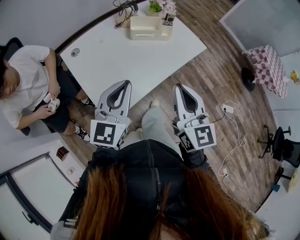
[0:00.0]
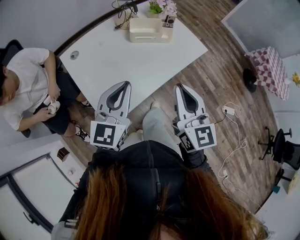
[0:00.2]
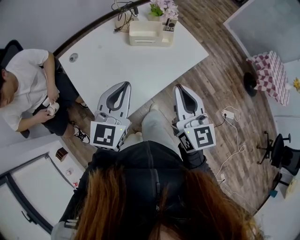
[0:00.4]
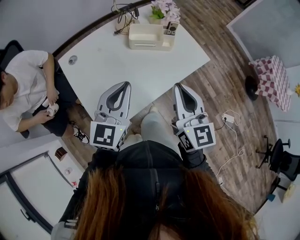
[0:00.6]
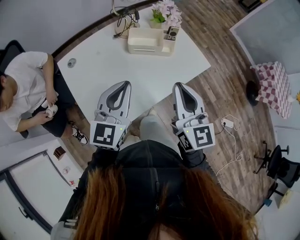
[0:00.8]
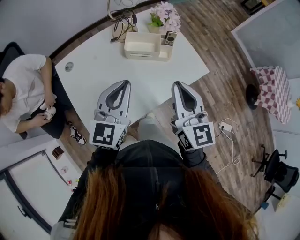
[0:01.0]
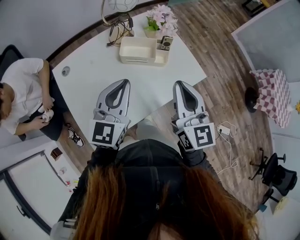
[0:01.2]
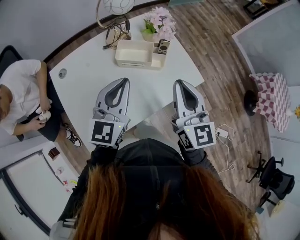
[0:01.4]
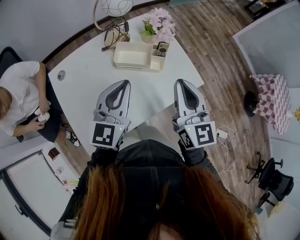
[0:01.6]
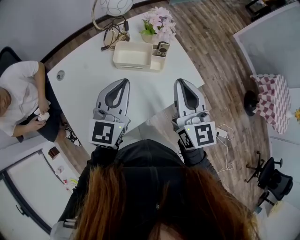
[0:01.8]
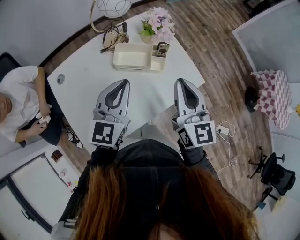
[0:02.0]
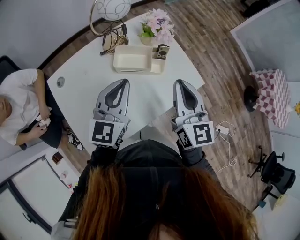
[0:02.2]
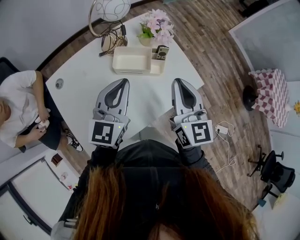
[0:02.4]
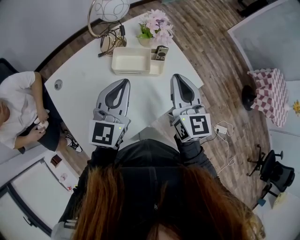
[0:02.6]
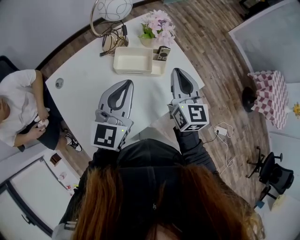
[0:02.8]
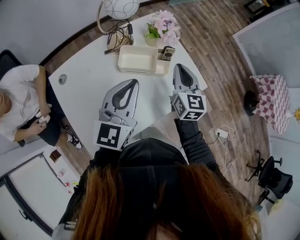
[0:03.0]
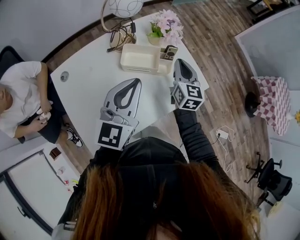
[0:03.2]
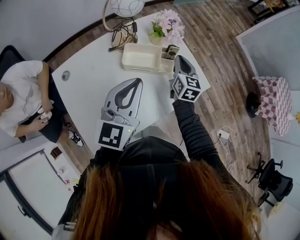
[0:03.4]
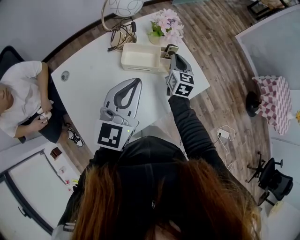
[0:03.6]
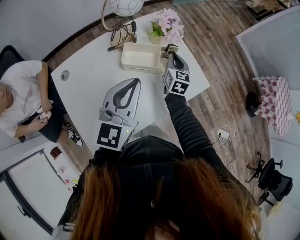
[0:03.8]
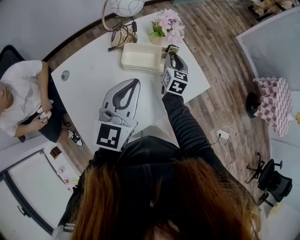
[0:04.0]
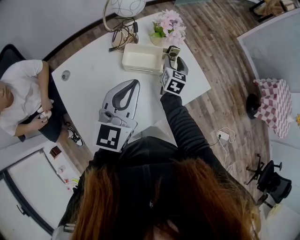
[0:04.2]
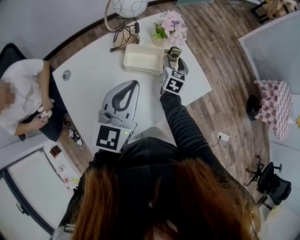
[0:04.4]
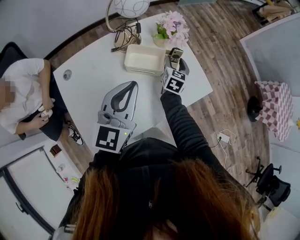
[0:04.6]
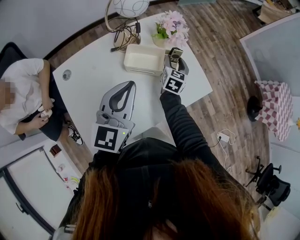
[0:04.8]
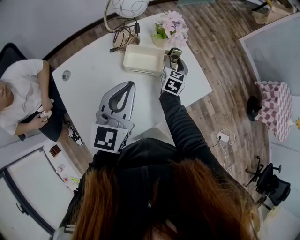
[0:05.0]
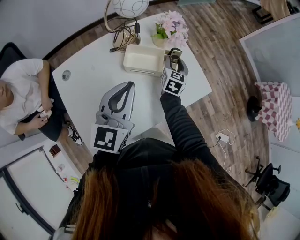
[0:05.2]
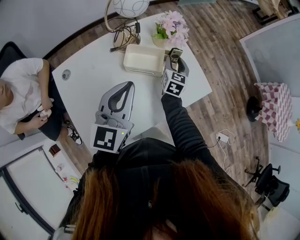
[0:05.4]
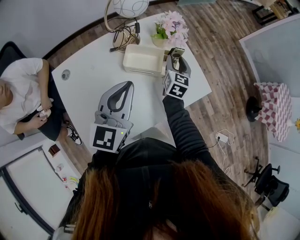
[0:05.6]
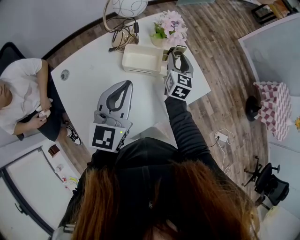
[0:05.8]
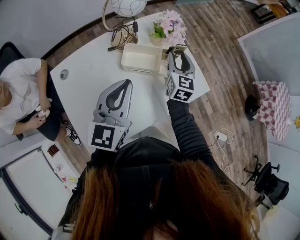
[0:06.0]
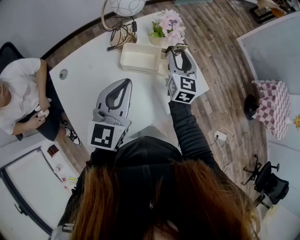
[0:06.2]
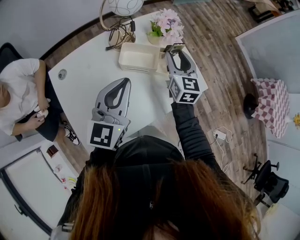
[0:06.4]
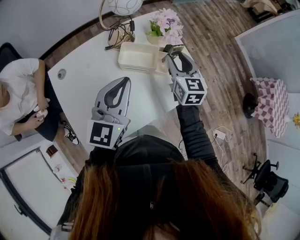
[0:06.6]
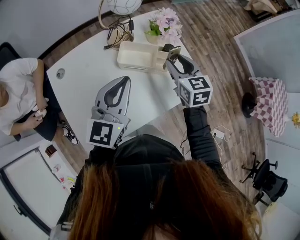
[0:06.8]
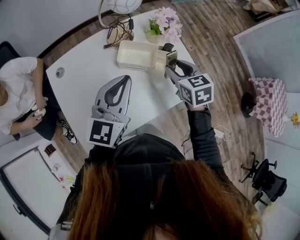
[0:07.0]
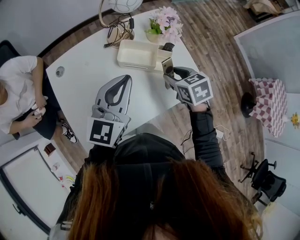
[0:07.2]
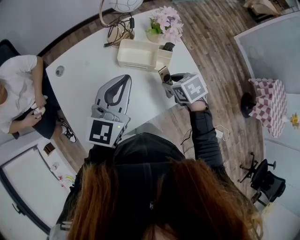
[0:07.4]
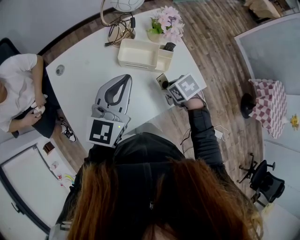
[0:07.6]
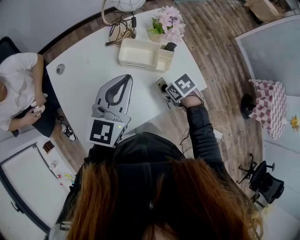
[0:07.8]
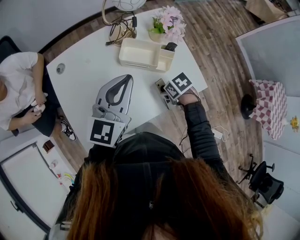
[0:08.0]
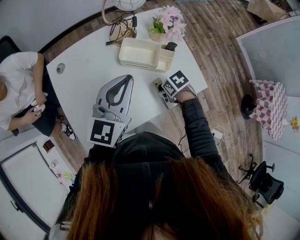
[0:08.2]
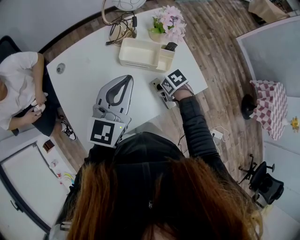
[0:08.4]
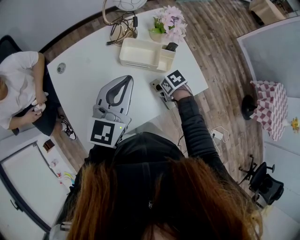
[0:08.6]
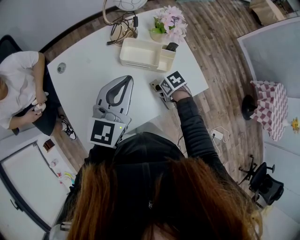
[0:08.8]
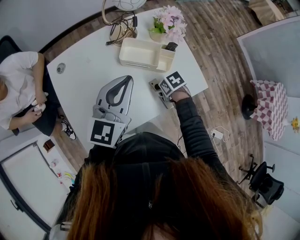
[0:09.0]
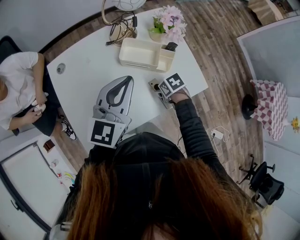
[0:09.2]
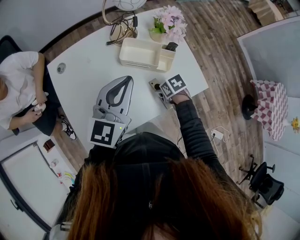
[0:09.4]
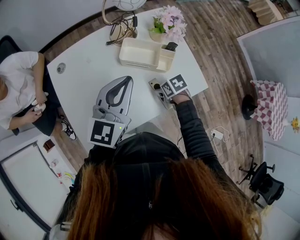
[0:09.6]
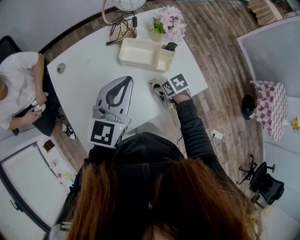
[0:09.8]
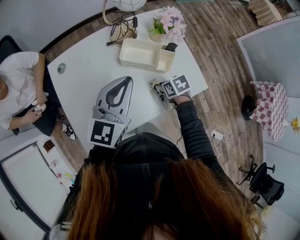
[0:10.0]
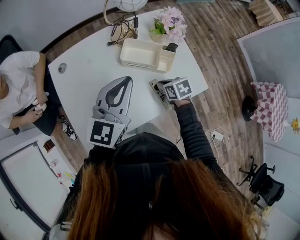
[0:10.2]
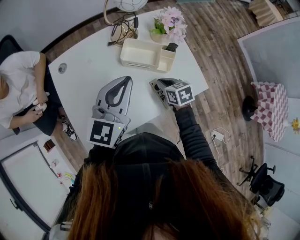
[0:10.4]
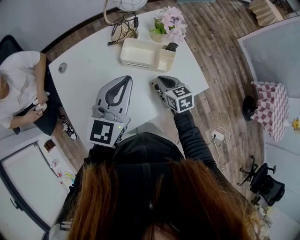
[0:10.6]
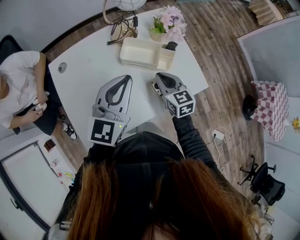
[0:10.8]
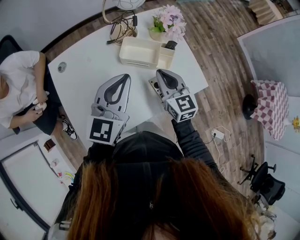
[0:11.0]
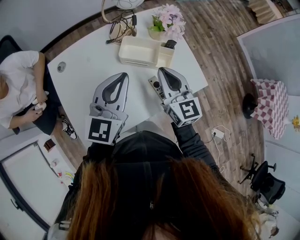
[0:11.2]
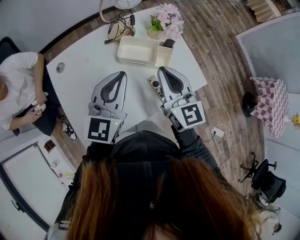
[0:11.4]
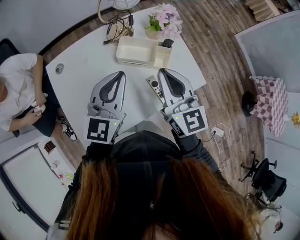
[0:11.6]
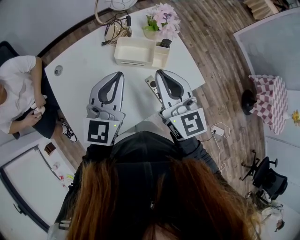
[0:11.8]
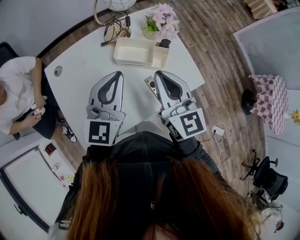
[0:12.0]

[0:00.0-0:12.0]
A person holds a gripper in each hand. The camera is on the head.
0:00.0 to 0:01.6: The two grippers go approximately 25 cm forward and to the right.
0:01.6 to 0:03.0: The right gripper moves forward and downward, roughly 15 cm.
0:03.0 to 0:04.4: The right gripper heads downward and forward, covering some 15 cm, swivels approximately 20 degrees, and opens up.
0:04.4 to 0:06.0: The right gripper moves upward, roughly 10 cm.
0:06.0 to 0:07.6: The right gripper changes place by about 20 cm, and tilts its fingers approximately 60 degrees downward.
0:07.6 to 0:09.0: The right gripper moves downward, roughly 10 cm.
0:09.0 to 0:10.4: The right gripper heads upward, covering some 5 cm, swivels roughly 30 degrees, and closes.
0:10.4 to 0:12.0: The right gripper heads upward, covering some 25 cm, and tips its fingers upward by approximately 40 degrees.

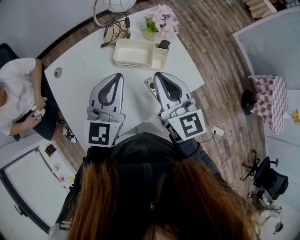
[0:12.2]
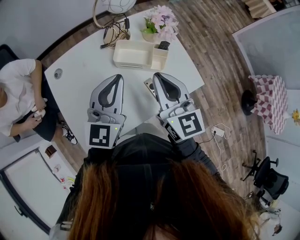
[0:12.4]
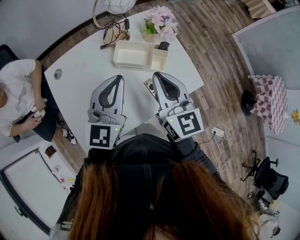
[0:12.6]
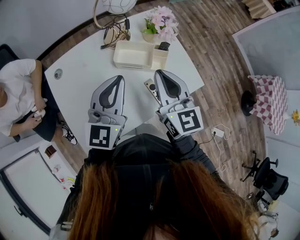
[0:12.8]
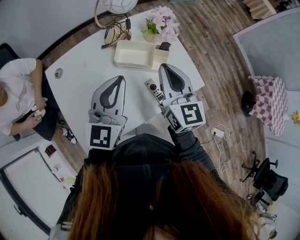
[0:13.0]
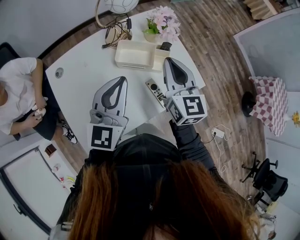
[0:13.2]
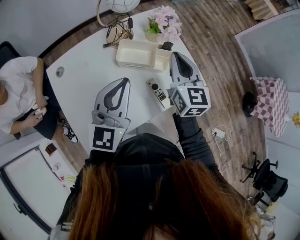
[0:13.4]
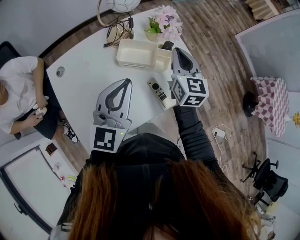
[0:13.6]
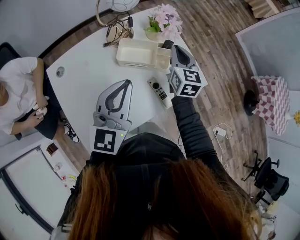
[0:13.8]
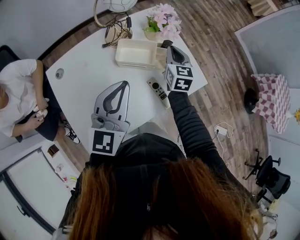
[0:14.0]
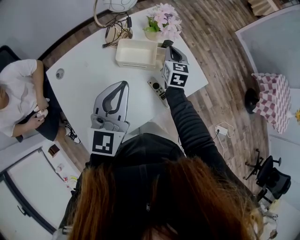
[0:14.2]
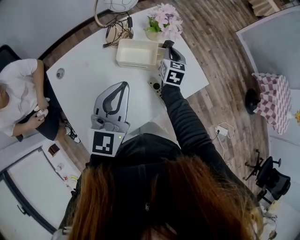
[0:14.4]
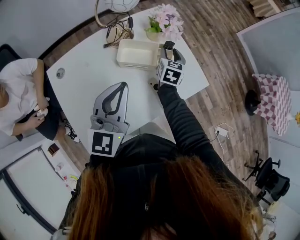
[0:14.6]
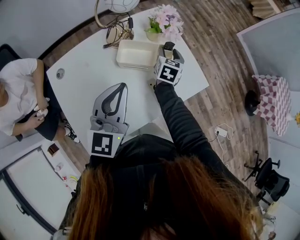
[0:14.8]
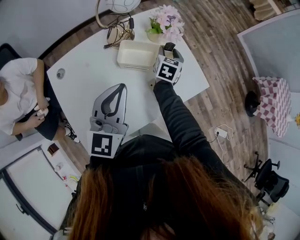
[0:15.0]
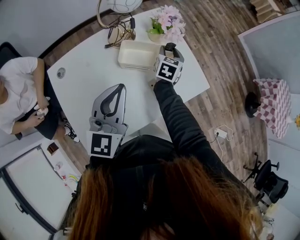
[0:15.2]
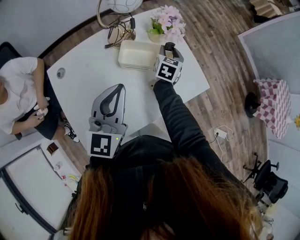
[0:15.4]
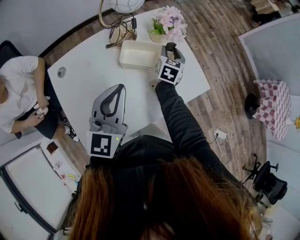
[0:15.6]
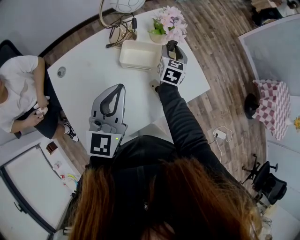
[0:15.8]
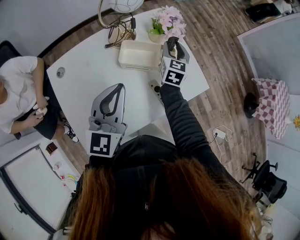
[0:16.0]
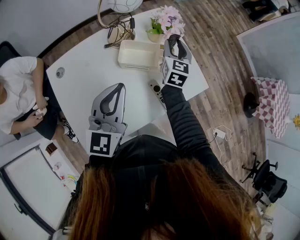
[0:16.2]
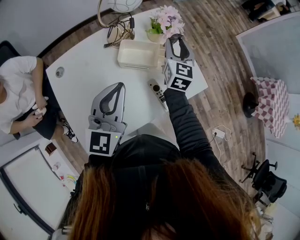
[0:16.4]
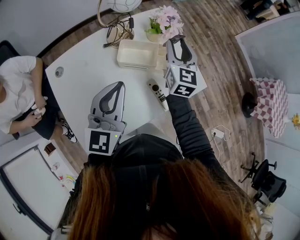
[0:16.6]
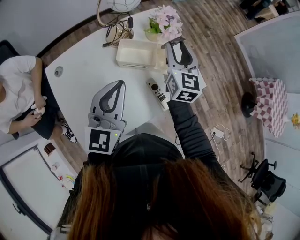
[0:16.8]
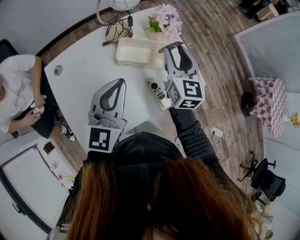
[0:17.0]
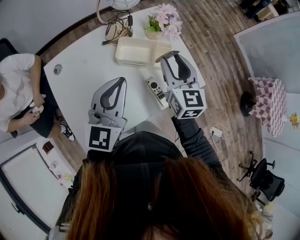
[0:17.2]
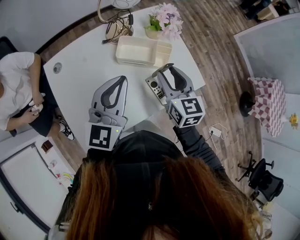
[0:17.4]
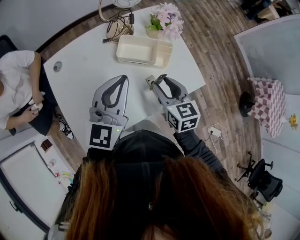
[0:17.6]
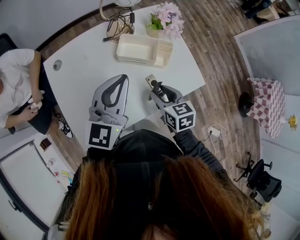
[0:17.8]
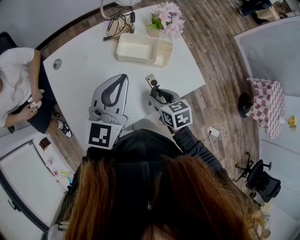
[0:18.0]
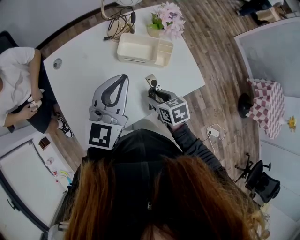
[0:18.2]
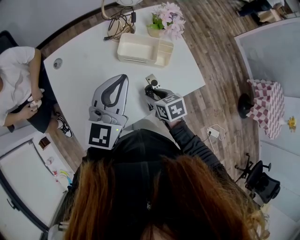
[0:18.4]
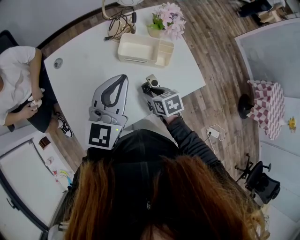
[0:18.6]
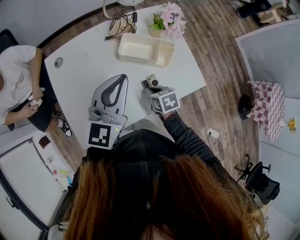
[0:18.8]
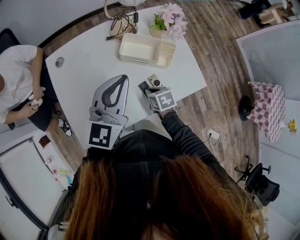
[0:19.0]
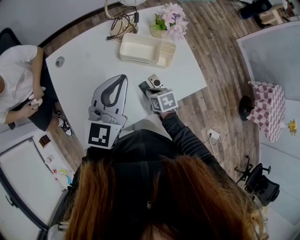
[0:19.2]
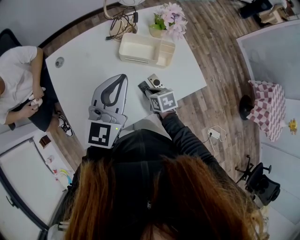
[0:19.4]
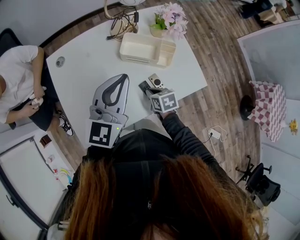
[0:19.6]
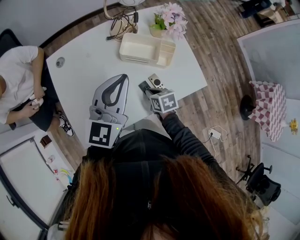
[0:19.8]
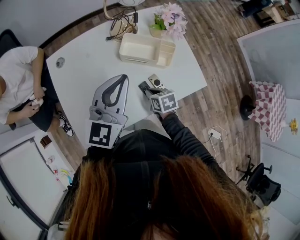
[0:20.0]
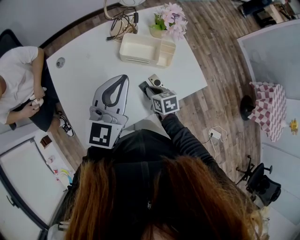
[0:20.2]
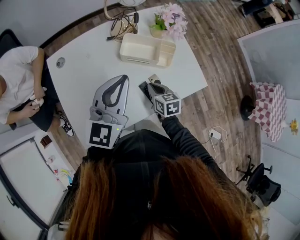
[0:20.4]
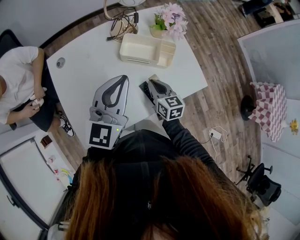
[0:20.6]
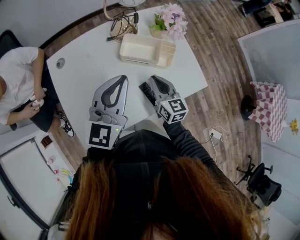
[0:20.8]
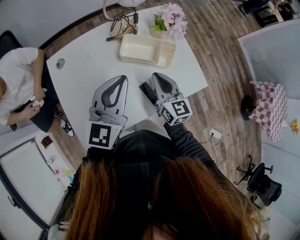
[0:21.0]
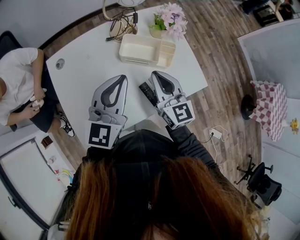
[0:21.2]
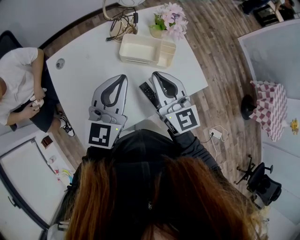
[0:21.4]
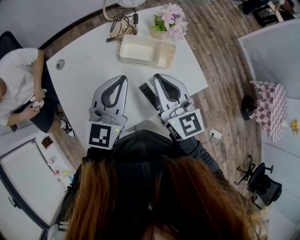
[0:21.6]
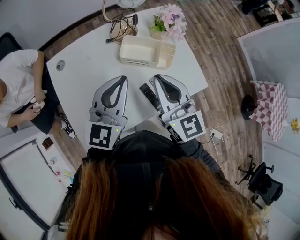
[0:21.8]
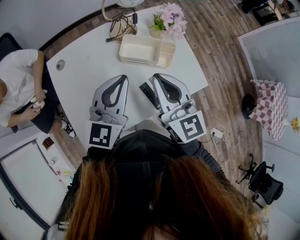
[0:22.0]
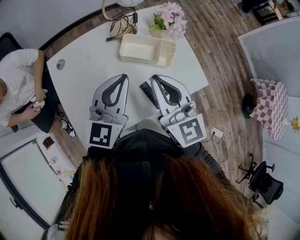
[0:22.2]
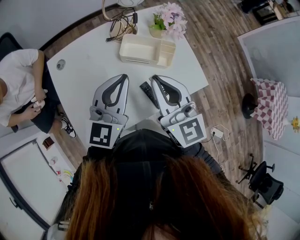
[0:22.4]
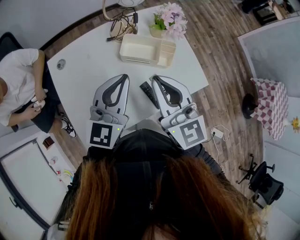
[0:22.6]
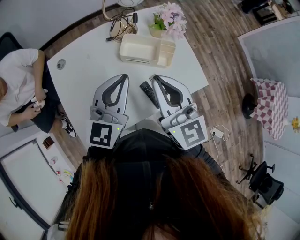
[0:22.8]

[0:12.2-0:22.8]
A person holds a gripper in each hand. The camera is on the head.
0:12.2 to 0:13.8: The right gripper goes roughly 20 cm forward, downward and to the right, and turns by about 20 degrees.
0:13.8 to 0:15.2: The right gripper is displaced downward and forward by roughly 15 cm, swivels roughly 20 degrees, and opens its fingers.
0:15.2 to 0:16.8: The right gripper moves upward, roughly 15 cm, and rotates approximately 30 degrees.
0:16.8 to 0:18.2: The right gripper heads backward and downward, covering about 25 cm, and tilts its fingers roughly 40 degrees downward.
0:18.2 to 0:19.8: The right gripper shifts about 5 cm downward, and closes.
0:19.8 to 0:21.2: The right gripper goes roughly 20 cm upward, and tilts its fingers approximately 50 degrees upward.
0:21.2 to 0:22.8: The right gripper moves upward, about 10 cm.

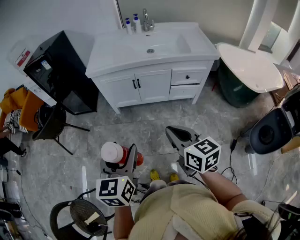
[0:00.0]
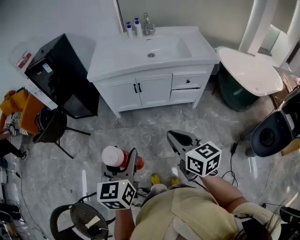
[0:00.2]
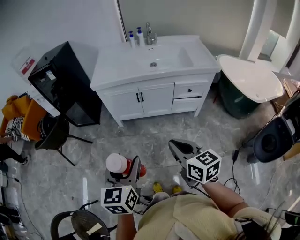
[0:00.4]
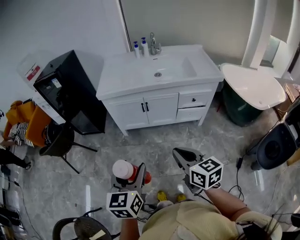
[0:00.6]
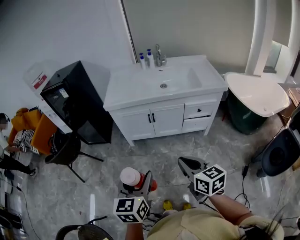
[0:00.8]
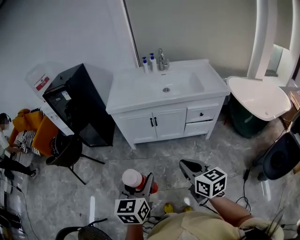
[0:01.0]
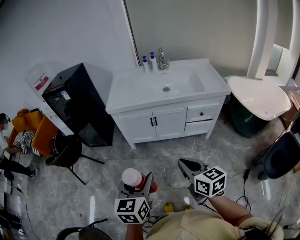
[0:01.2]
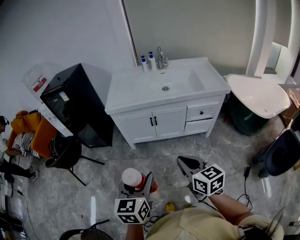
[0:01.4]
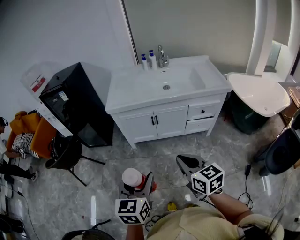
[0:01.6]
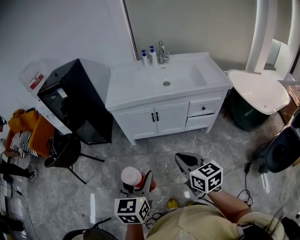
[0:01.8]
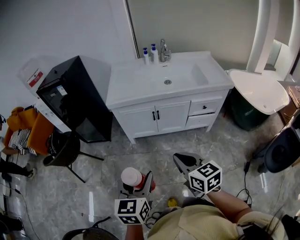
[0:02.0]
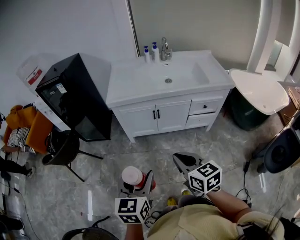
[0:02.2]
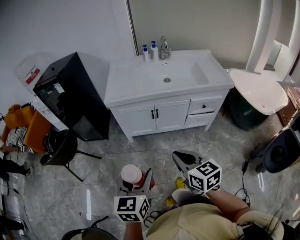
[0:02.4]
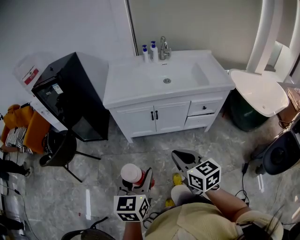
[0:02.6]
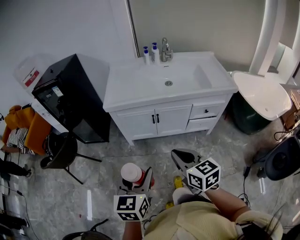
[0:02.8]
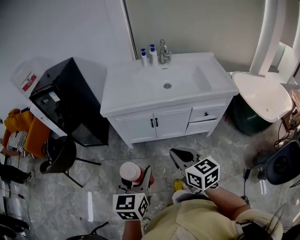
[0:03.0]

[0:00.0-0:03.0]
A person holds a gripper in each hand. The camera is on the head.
0:00.0 to 0:01.6: The left gripper heads forward, covering about 5 cm. The right gripper shifts some 10 cm forward and to the left.
0:01.6 to 0:03.0: Both grippers travel together forward, some 10 cm.
